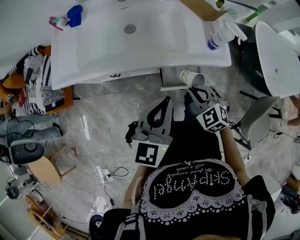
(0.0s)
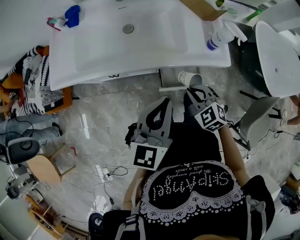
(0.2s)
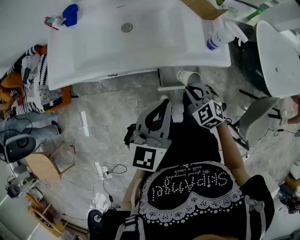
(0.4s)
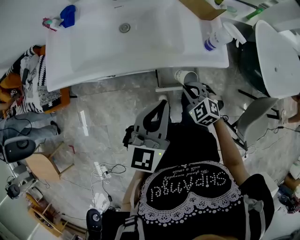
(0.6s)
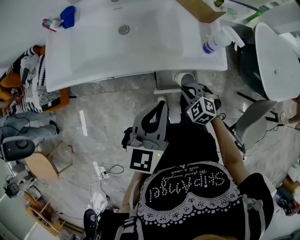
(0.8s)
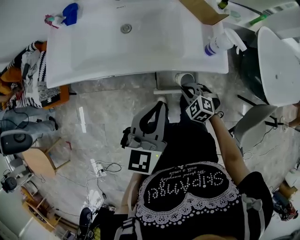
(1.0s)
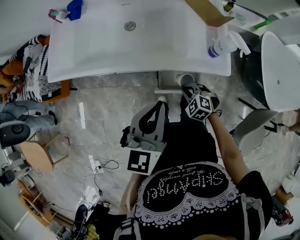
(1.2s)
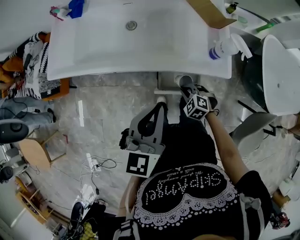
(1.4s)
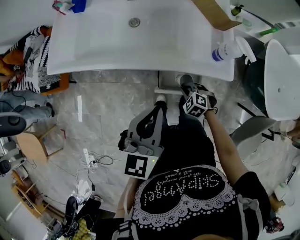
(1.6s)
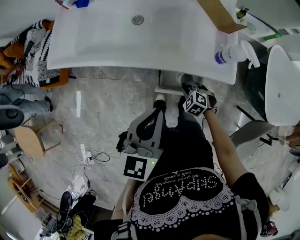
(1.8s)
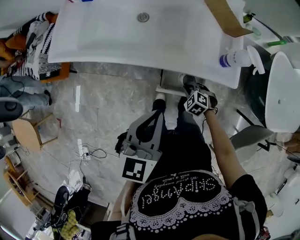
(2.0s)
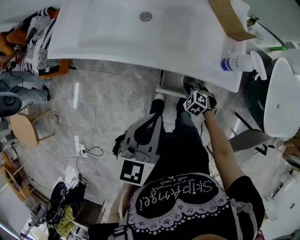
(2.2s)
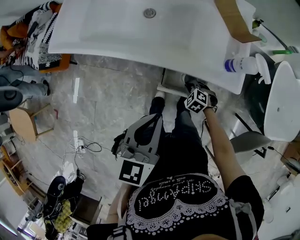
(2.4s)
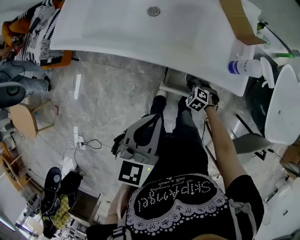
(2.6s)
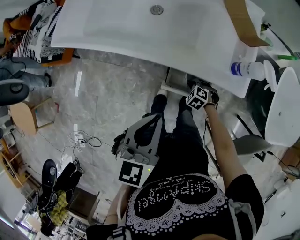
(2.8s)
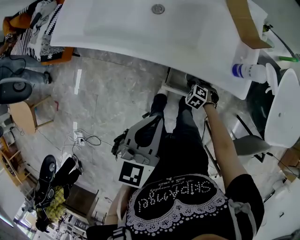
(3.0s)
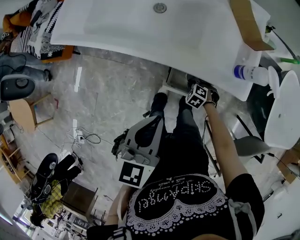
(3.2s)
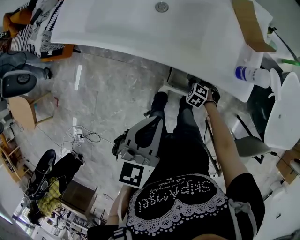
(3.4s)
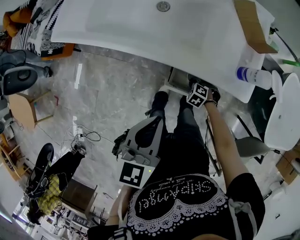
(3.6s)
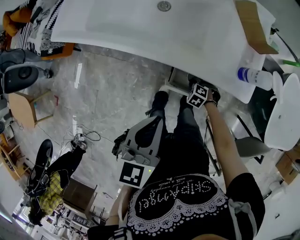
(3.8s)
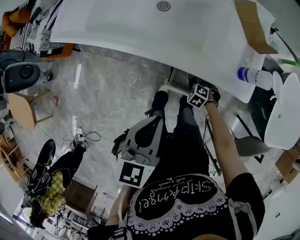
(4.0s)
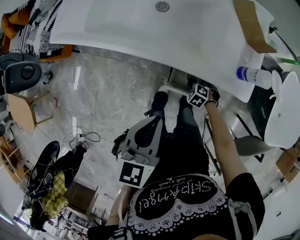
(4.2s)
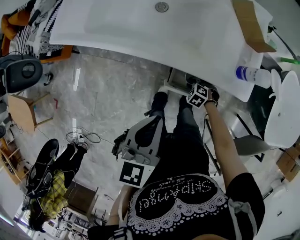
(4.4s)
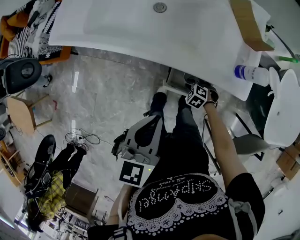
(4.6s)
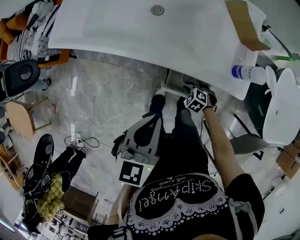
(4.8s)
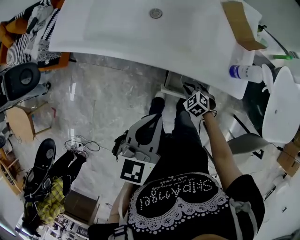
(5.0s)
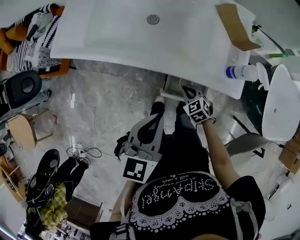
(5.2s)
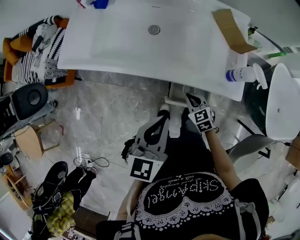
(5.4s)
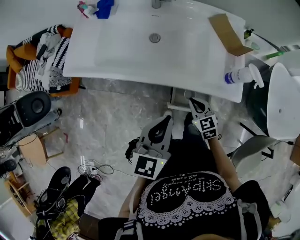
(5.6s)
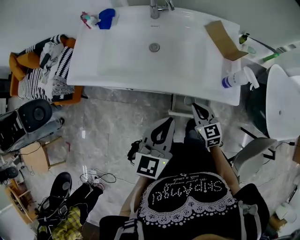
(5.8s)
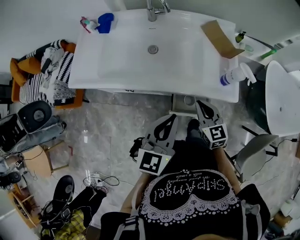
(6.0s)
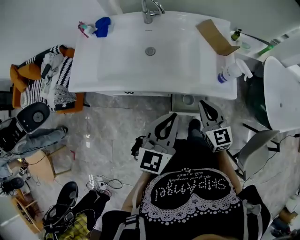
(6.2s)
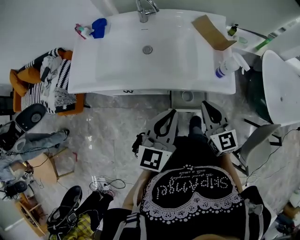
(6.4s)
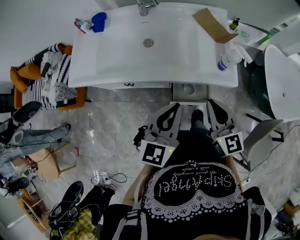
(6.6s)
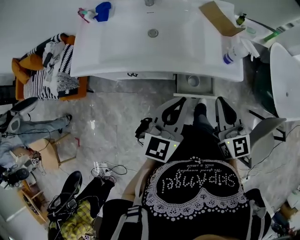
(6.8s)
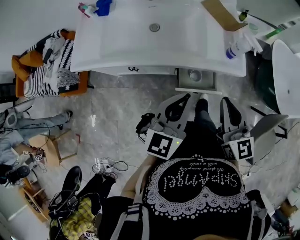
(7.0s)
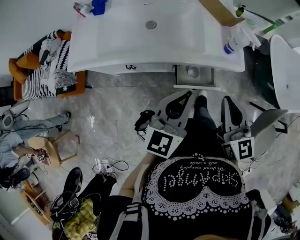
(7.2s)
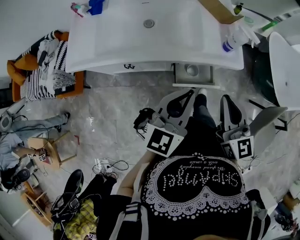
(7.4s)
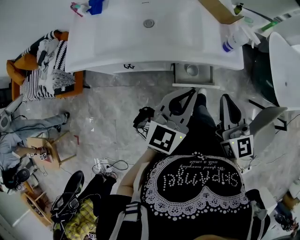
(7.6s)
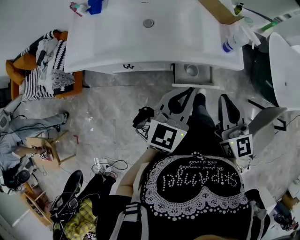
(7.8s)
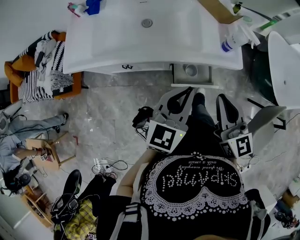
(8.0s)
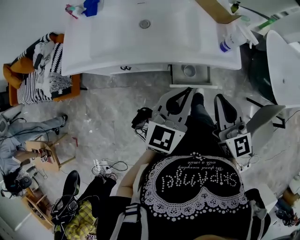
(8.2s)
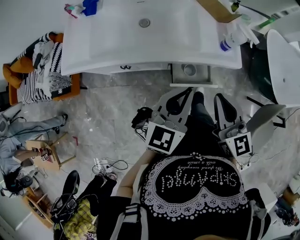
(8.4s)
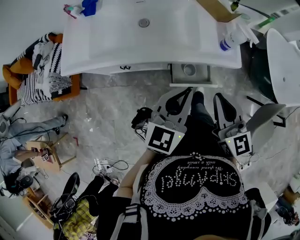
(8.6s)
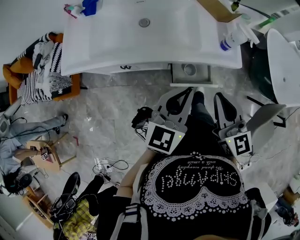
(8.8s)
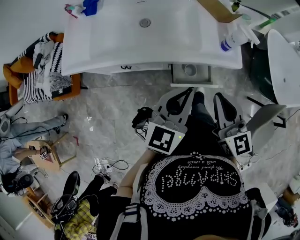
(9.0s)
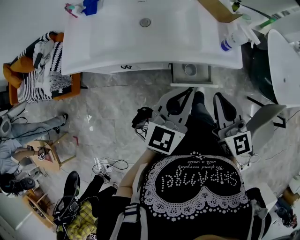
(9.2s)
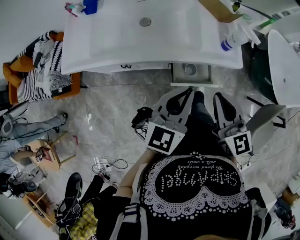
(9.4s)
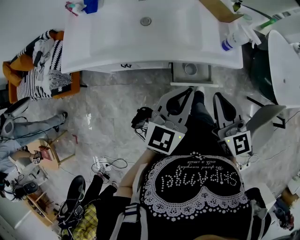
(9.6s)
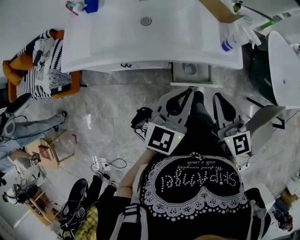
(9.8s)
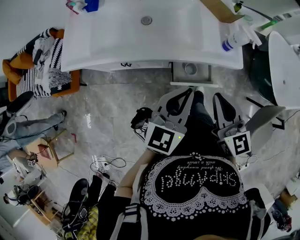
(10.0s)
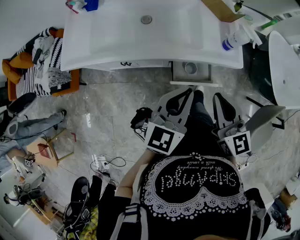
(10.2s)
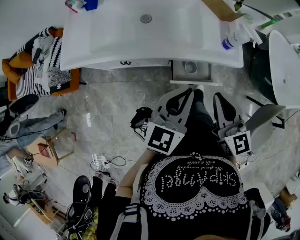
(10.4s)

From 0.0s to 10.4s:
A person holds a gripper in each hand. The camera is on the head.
From 0.0s to 1.4s: The right gripper travels downward by about 15 cm, and turns by about 20 degrees.
From 1.4s to 3.0s: The right gripper heads downward, covering some 10 cm.
From 3.0s to 4.4s: The grippers stay close to where they were, moving slightly.
From 4.4s to 6.0s: The left gripper travels upward by roughly 5 cm, and rotates roughly 20 degrees. The right gripper travels upward by about 30 cm, and tips its fingers upward by roughly 50 degrees.
From 6.0s to 7.4s: The right gripper moves upward and backward, approximately 15 cm, and changes its angle by about 20 degrees. The left gripper ends up roughly 5 cm from where it was.
From 7.4s to 9.0s: The grippers make only small movements.
From 9.0s to 10.4s: Both grippers stay put.

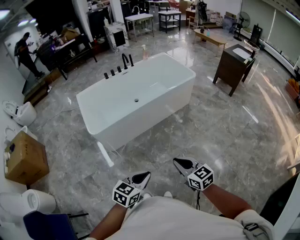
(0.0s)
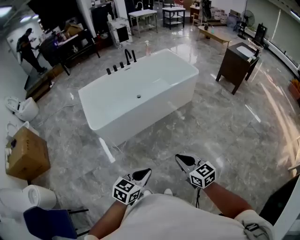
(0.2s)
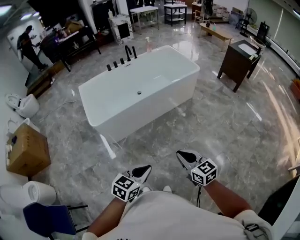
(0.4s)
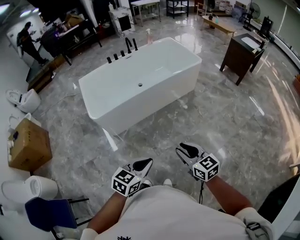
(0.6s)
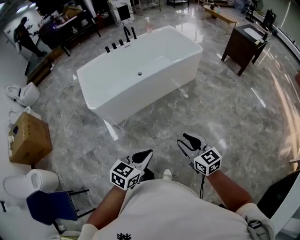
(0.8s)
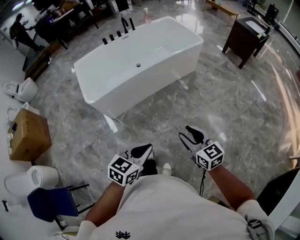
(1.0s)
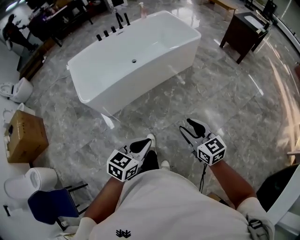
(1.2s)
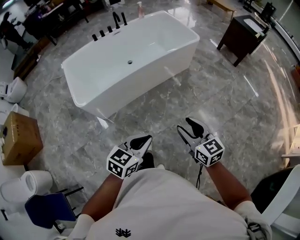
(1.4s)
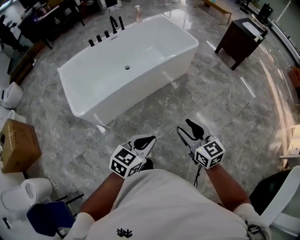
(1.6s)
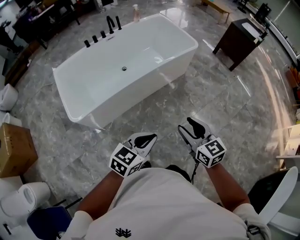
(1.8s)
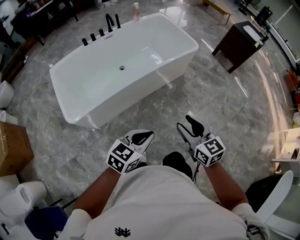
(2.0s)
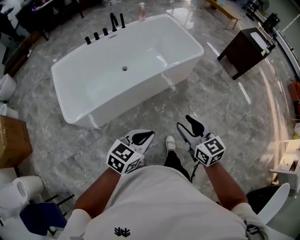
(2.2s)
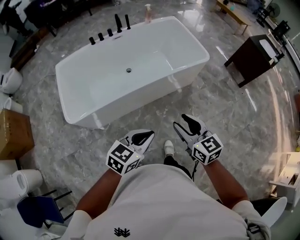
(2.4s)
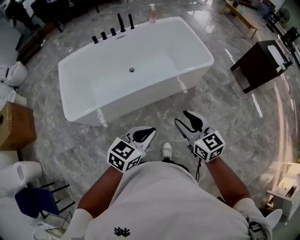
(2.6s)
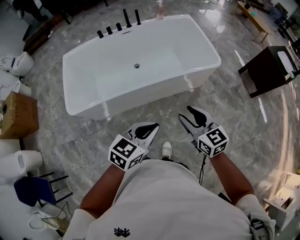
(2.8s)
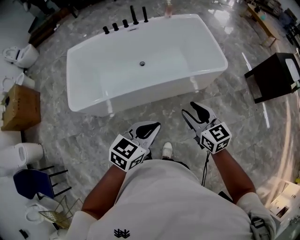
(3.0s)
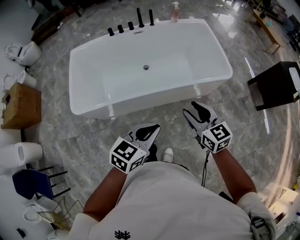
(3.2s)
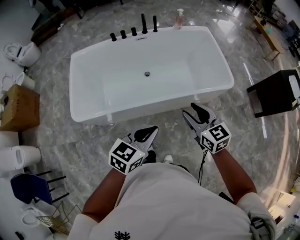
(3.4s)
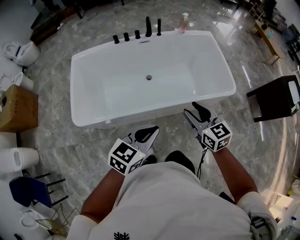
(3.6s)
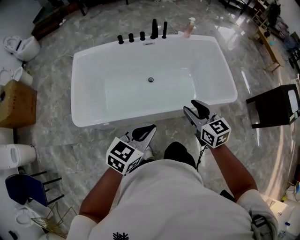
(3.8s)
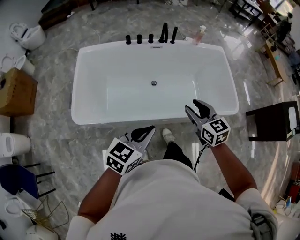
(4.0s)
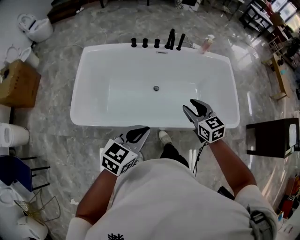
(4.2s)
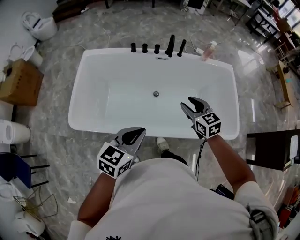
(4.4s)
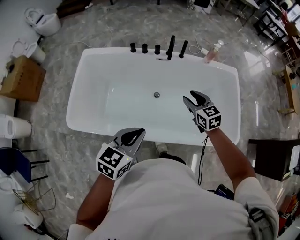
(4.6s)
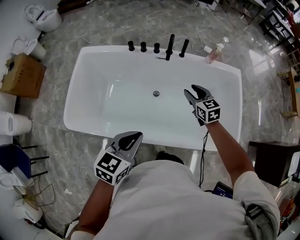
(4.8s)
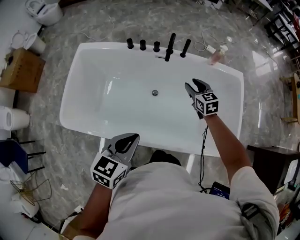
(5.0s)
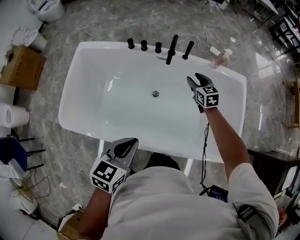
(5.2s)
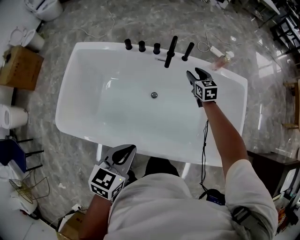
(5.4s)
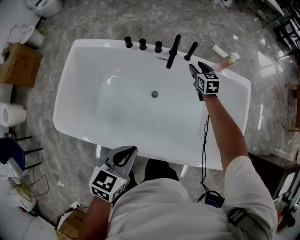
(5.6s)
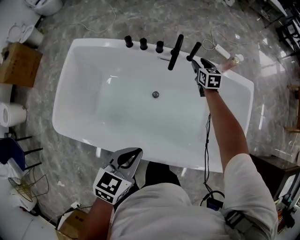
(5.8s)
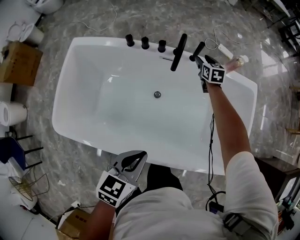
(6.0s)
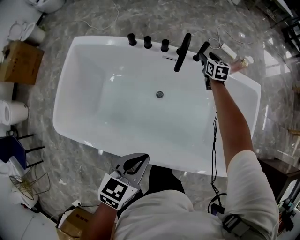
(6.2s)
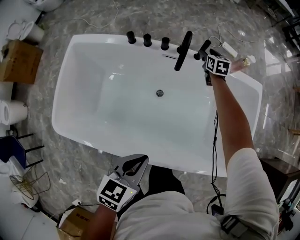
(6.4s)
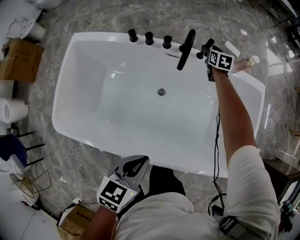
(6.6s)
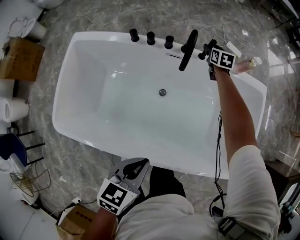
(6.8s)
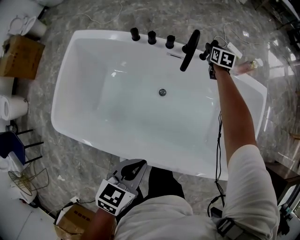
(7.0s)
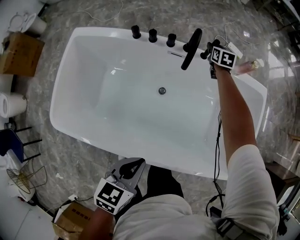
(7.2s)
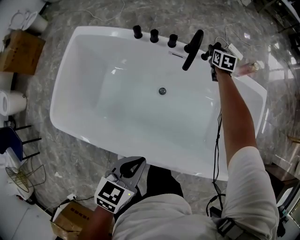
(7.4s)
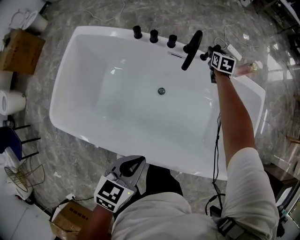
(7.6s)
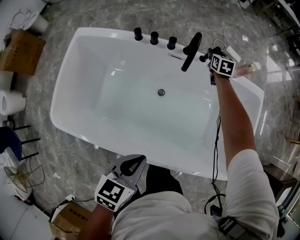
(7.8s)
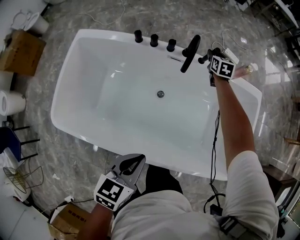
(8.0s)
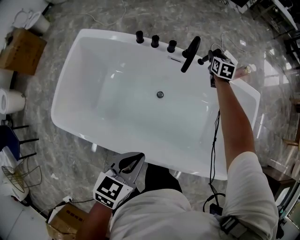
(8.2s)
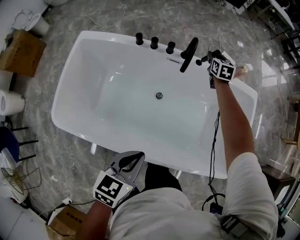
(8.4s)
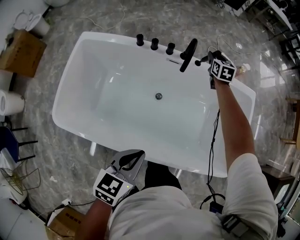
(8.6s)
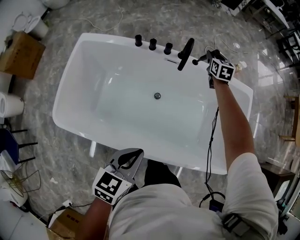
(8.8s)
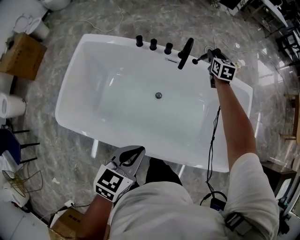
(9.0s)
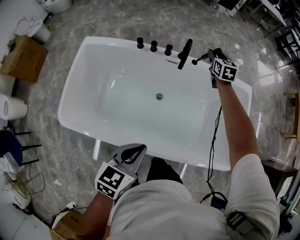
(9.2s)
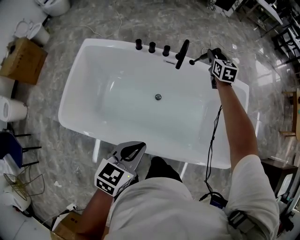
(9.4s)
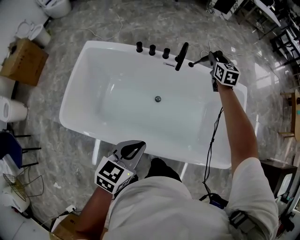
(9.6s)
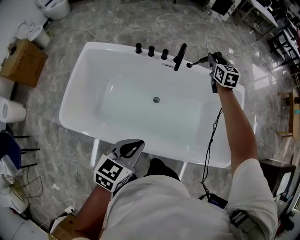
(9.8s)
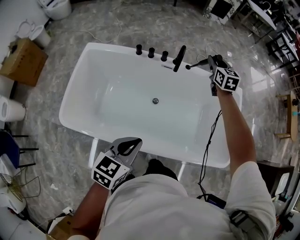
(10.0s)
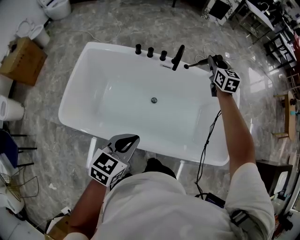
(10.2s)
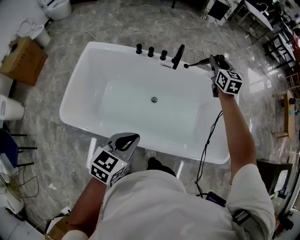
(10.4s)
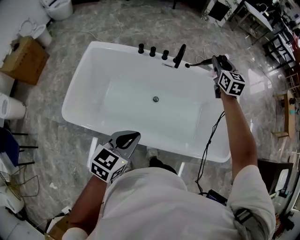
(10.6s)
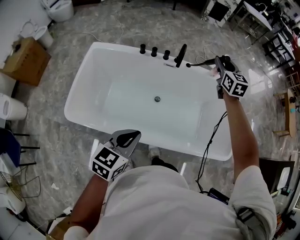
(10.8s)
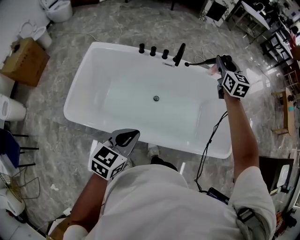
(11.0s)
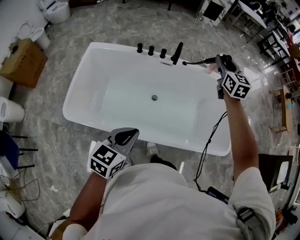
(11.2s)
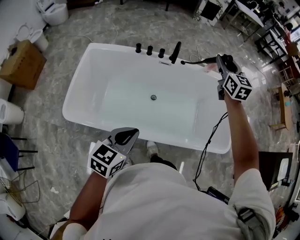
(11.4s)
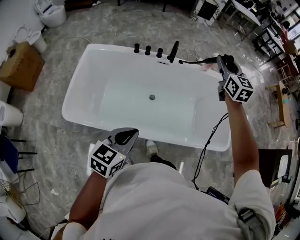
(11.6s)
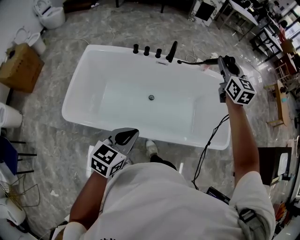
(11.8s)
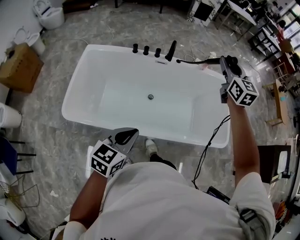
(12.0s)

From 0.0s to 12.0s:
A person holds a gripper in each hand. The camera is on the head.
From 0.0s to 1.6s: The two grippers go some 20 cm forward. The right gripper opens its fingers.
From 1.6s to 3.0s: Both grippers travel together forward, roughly 35 cm. The left gripper swivels approximately 20 degrees, while the right gripper changes its angle by approximately 20 degrees.
From 3.0s to 4.4s: The right gripper is displaced forward by about 40 cm, and changes its angle by some 20 degrees. The left gripper is displaced forward and to the left by about 35 cm, and changes its angle by approximately 20 degrees.
From 4.4s to 6.0s: The left gripper shifts about 25 cm forward, downward and to the right. Meanwhile the right gripper travels forward and downward by approximately 50 cm.
From 6.0s to 7.6s: The right gripper goes some 5 cm forward.
From 7.6s to 9.0s: The left gripper moves upward, some 5 cm; the right gripper moves upward and backward, roughly 15 cm.
From 9.0s to 10.4s: The right gripper is displaced upward and backward by about 25 cm, while the left gripper shifts some 10 cm backward and upward.
From 10.4s to 12.0s: The left gripper travels backward by some 10 cm; the right gripper goes about 25 cm backward and upward.

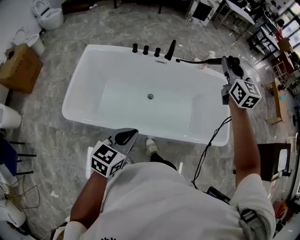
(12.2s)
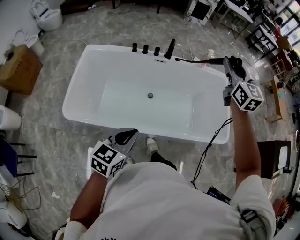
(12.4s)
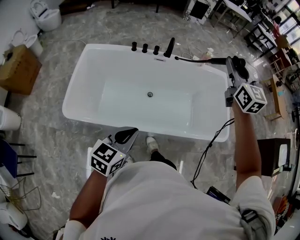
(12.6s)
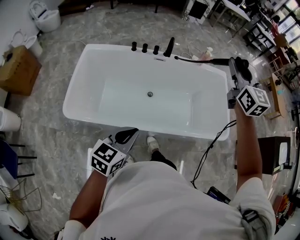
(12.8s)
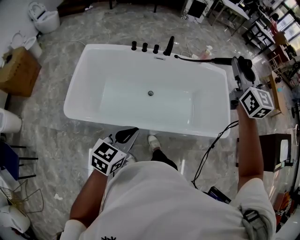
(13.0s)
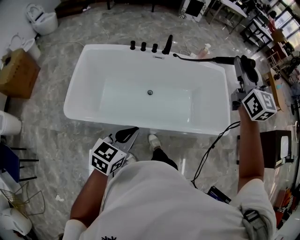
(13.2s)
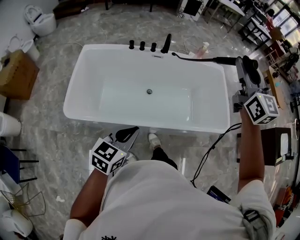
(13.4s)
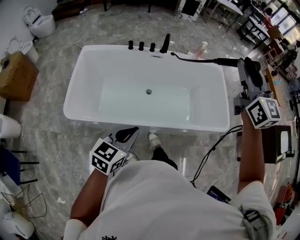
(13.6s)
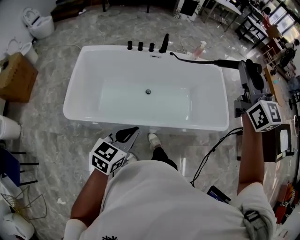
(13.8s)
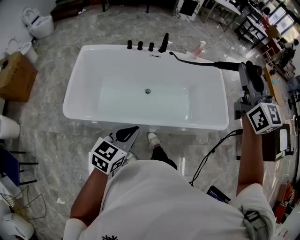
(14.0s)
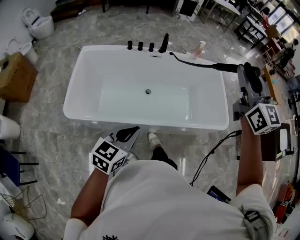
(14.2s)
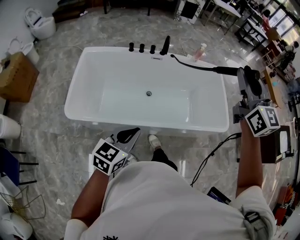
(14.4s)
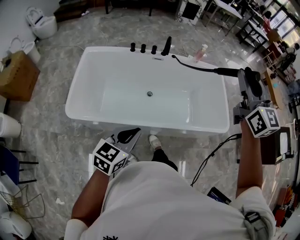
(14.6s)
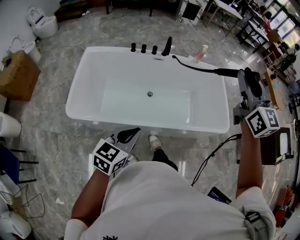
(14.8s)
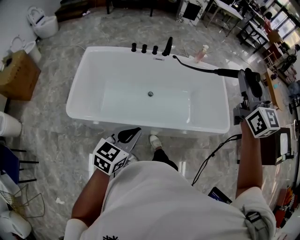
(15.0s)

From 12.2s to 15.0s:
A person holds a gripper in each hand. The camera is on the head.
From 12.2s to 13.6s: The left gripper goes approximately 5 cm backward. Meanwhile the right gripper is displaced backward and upward by about 20 cm.
From 13.6s to 15.0s: The grippers make only small movements.
